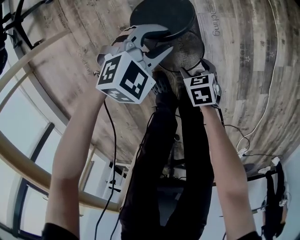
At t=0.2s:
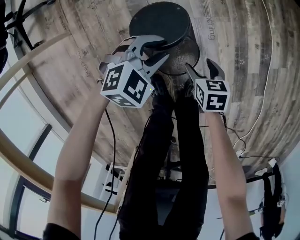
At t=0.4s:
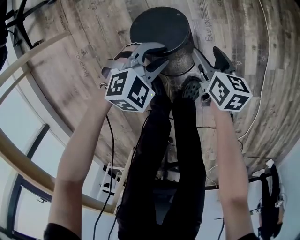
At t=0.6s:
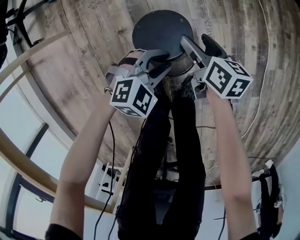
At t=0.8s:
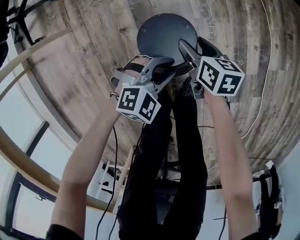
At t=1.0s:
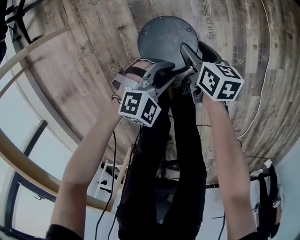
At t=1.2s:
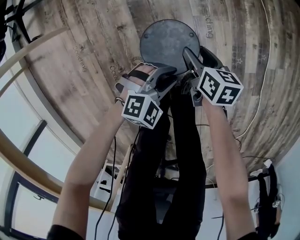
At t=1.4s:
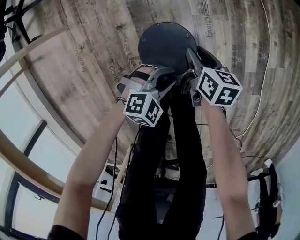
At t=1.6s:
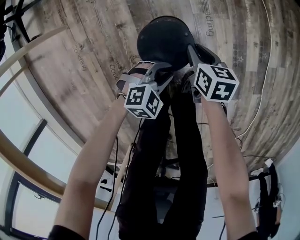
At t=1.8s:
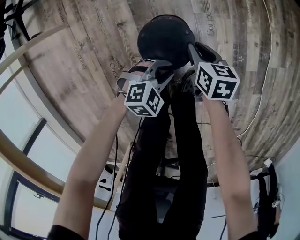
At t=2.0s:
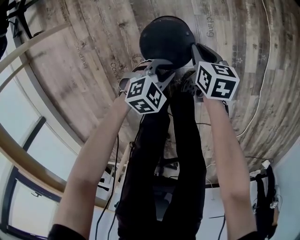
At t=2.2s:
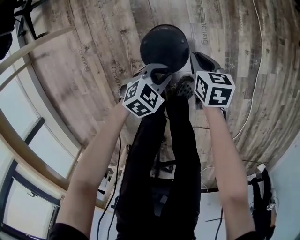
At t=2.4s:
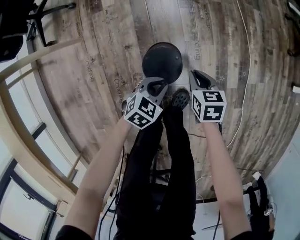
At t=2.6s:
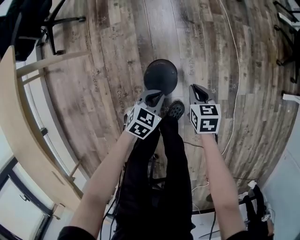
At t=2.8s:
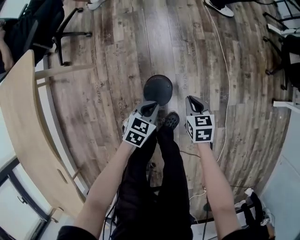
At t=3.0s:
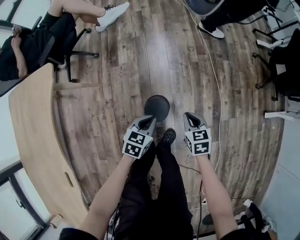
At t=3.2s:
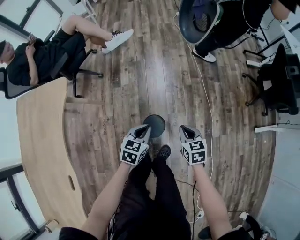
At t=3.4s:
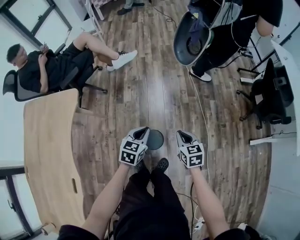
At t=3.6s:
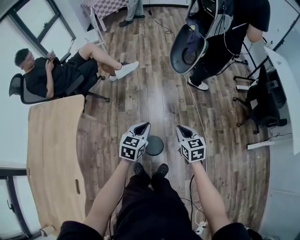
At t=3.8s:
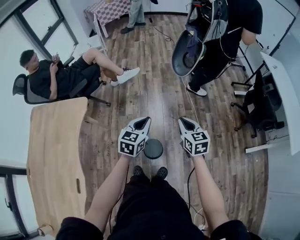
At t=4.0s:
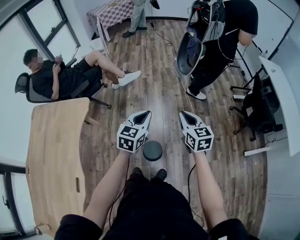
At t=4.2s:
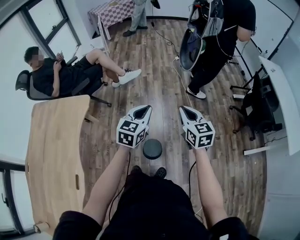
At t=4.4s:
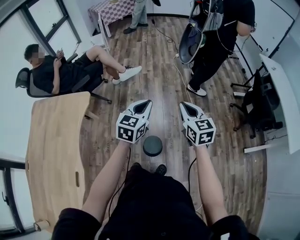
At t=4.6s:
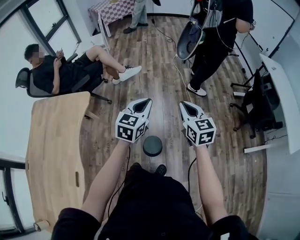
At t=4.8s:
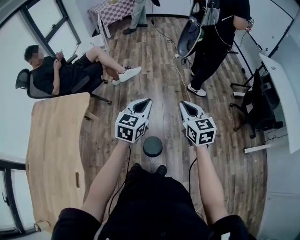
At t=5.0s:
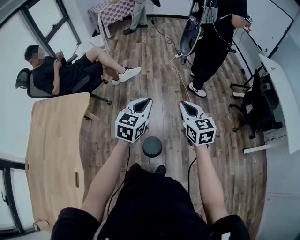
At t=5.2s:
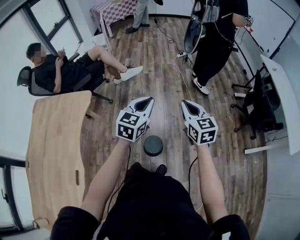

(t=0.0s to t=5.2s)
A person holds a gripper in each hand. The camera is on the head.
t=0.0s - t=1.8s: The right gripper changes its angle by about 30 degrees, and closes up; the left gripper moves roughly 15 cm.
t=1.8s - t=3.4s: Both grippers travel together upward, about 50 cm. The left gripper turns by approximately 60 degrees; the right gripper swivels about 30 degrees.
t=3.4s - t=5.2s: Both grippers travel together upward, about 25 cm. The right gripper swivels approximately 20 degrees. The left gripper rotates roughly 20 degrees.

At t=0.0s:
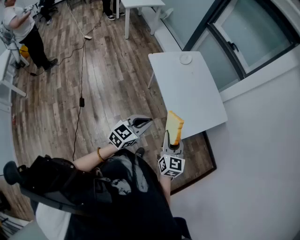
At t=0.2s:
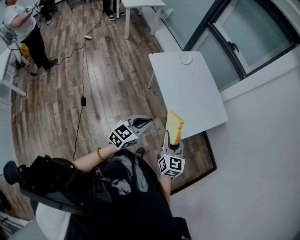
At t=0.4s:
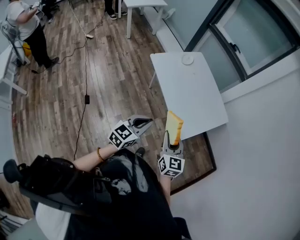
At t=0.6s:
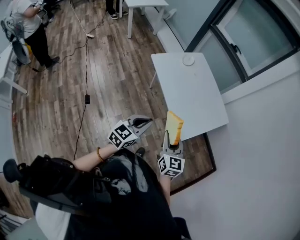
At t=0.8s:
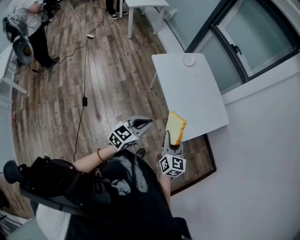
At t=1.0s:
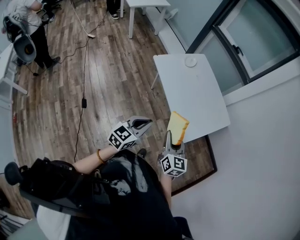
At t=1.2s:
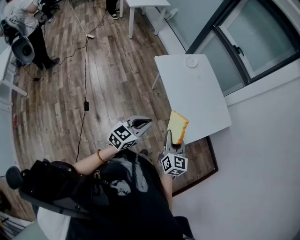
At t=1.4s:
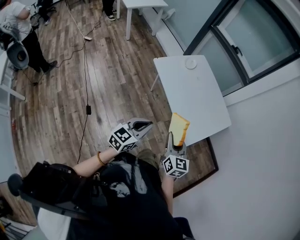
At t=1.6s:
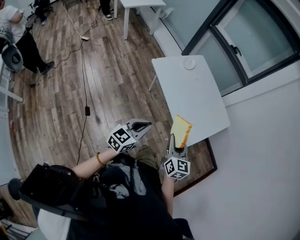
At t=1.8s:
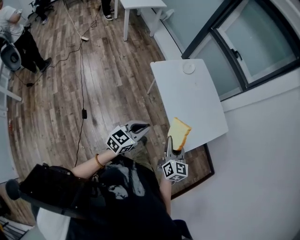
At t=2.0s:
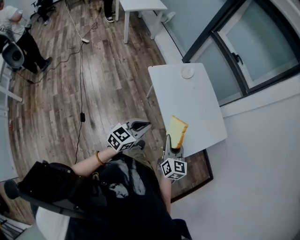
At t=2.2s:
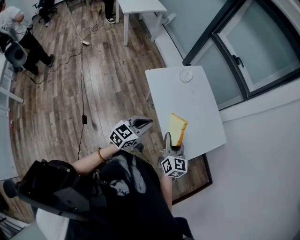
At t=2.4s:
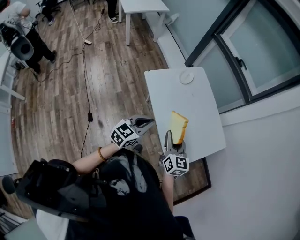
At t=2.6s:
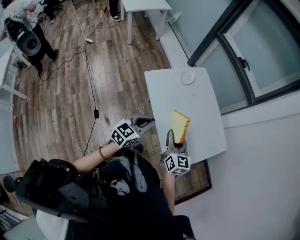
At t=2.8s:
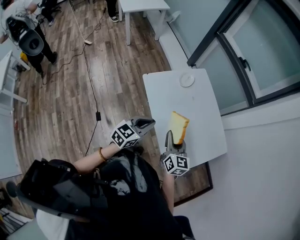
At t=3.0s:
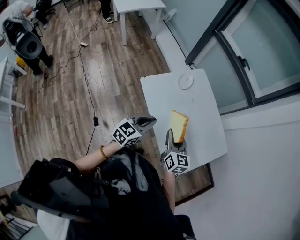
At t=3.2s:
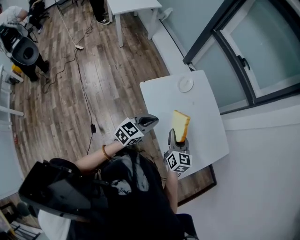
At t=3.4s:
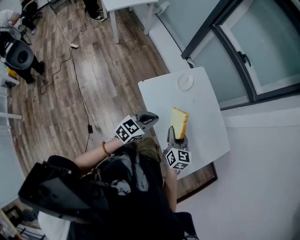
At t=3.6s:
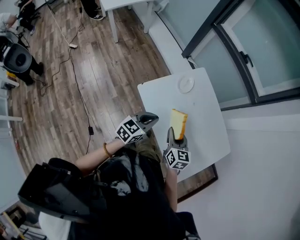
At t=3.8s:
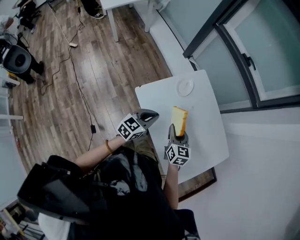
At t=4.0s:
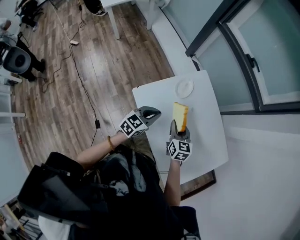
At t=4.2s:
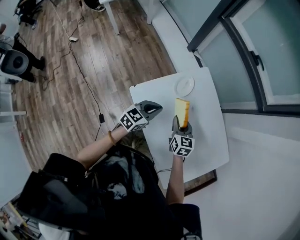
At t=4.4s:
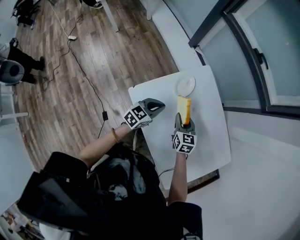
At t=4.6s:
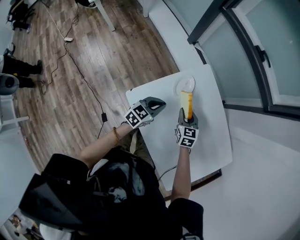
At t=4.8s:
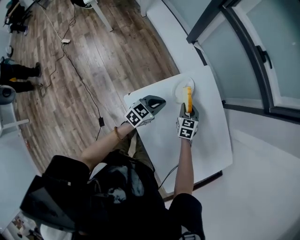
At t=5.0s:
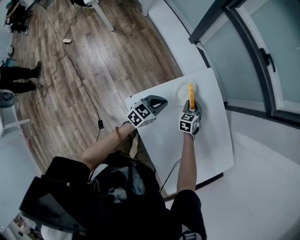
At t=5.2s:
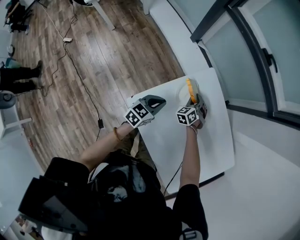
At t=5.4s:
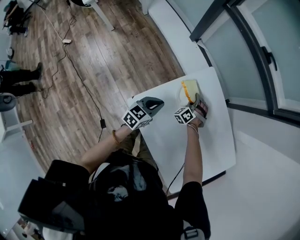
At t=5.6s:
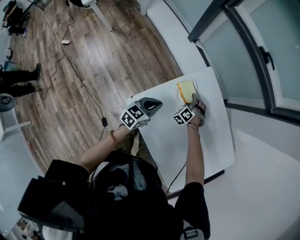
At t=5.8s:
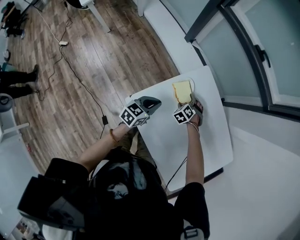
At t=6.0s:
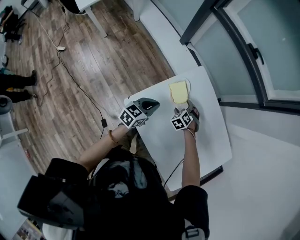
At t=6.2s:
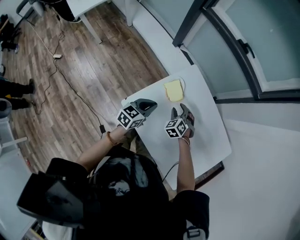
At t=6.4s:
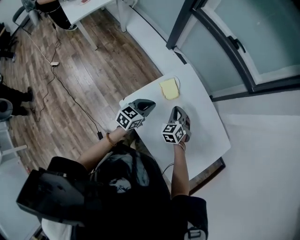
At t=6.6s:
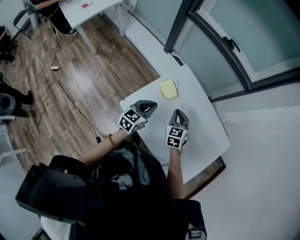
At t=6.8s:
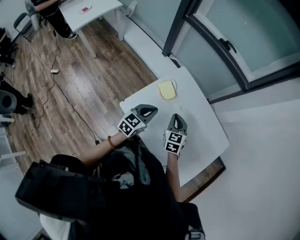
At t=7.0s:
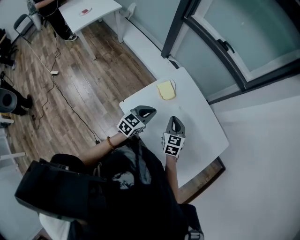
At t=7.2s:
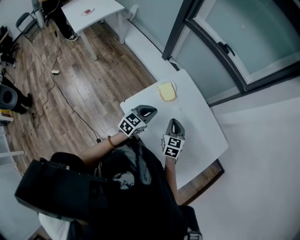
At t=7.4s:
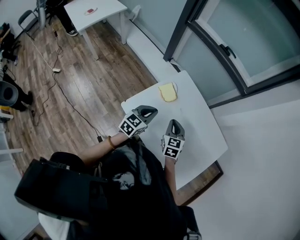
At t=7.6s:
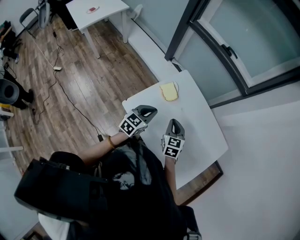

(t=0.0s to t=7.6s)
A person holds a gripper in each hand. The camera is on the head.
t=0.0s - t=1.6s: The left gripper shifts some 10 cm to the left. The right gripper travels to the left by approximately 5 cm.
t=1.6s - t=3.0s: The grippers both shift forward by approximately 30 cm.
t=3.0s - t=4.6s: Both grippers travel together forward and downward, approximately 35 cm. The right gripper changes its angle by some 20 degrees.
t=4.6s - t=6.0s: The right gripper goes about 10 cm downward, goes forward and returns, roughly 15 cm each way, rotates roughly 50 degrees, and opens.
t=6.0s - t=7.6s: The right gripper goes some 25 cm upward and backward, tilts its fingers approximately 30 degrees upward, and closes its fingers. Meanwhile the left gripper goes roughly 15 cm upward, backward and to the right.

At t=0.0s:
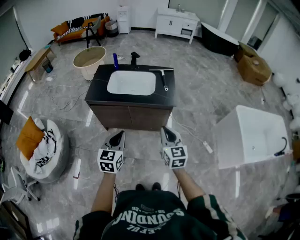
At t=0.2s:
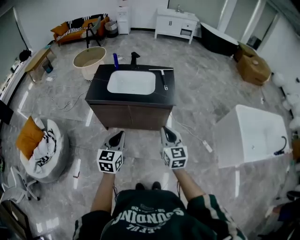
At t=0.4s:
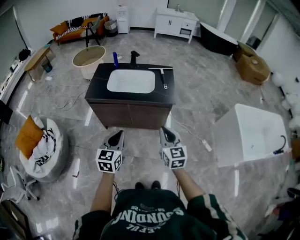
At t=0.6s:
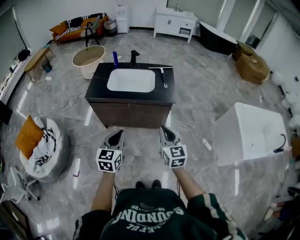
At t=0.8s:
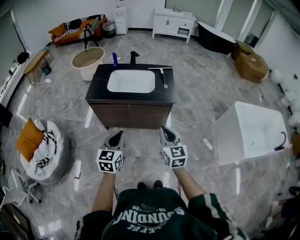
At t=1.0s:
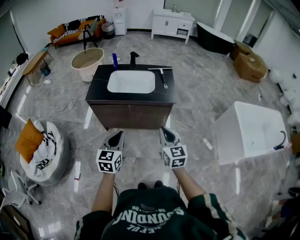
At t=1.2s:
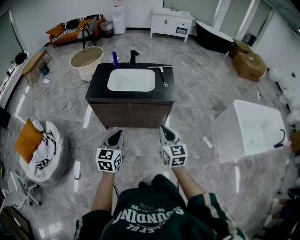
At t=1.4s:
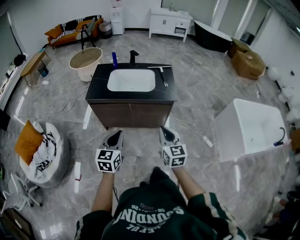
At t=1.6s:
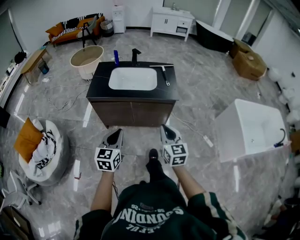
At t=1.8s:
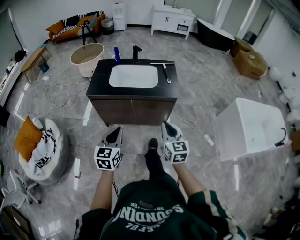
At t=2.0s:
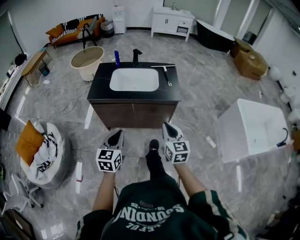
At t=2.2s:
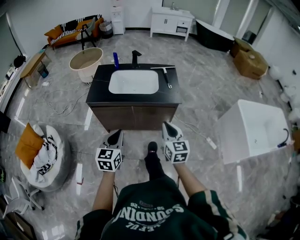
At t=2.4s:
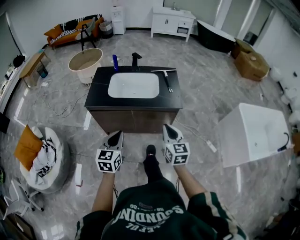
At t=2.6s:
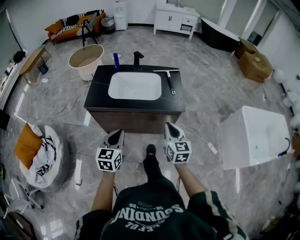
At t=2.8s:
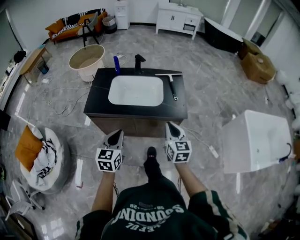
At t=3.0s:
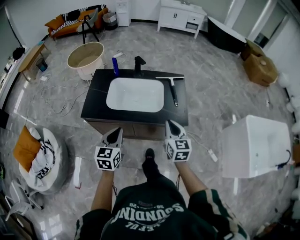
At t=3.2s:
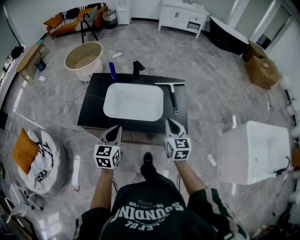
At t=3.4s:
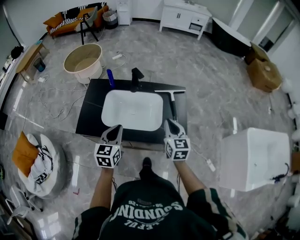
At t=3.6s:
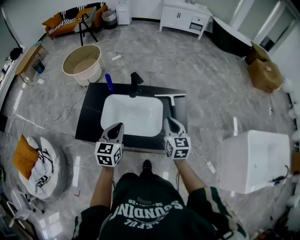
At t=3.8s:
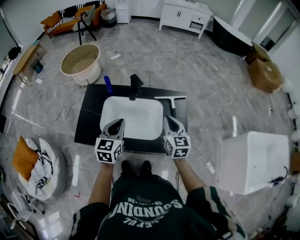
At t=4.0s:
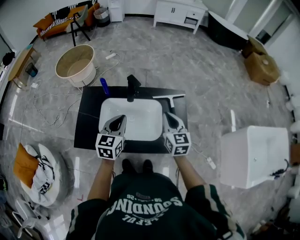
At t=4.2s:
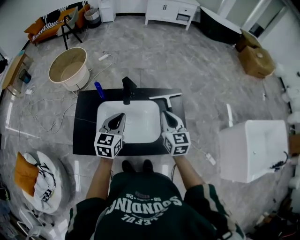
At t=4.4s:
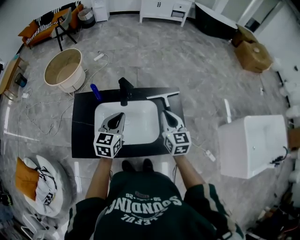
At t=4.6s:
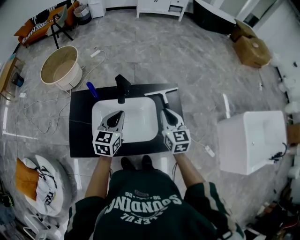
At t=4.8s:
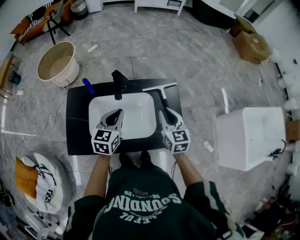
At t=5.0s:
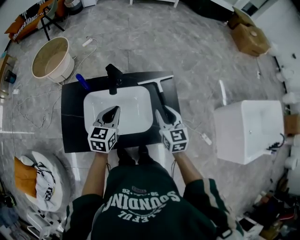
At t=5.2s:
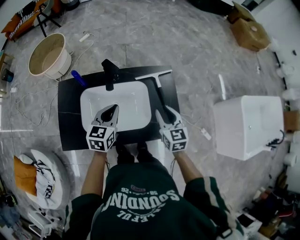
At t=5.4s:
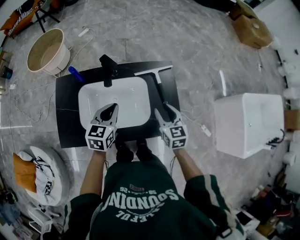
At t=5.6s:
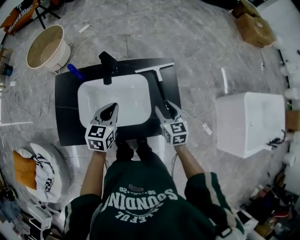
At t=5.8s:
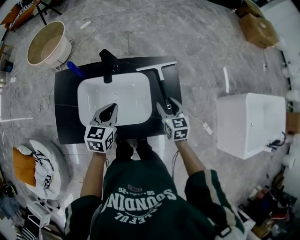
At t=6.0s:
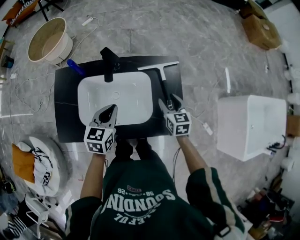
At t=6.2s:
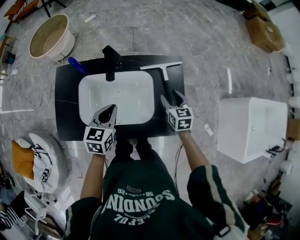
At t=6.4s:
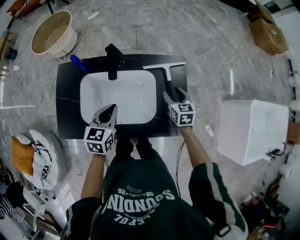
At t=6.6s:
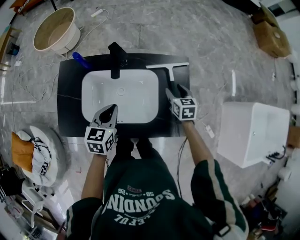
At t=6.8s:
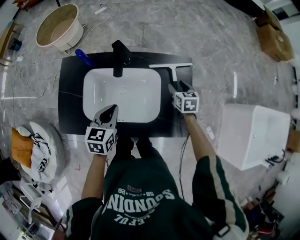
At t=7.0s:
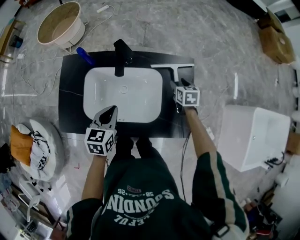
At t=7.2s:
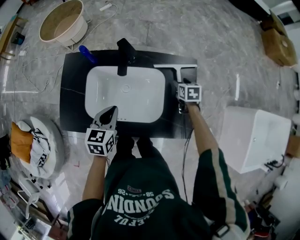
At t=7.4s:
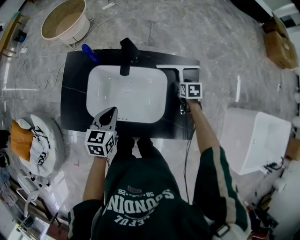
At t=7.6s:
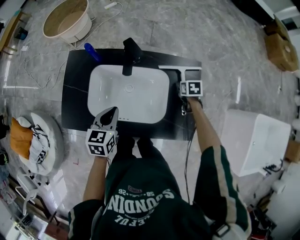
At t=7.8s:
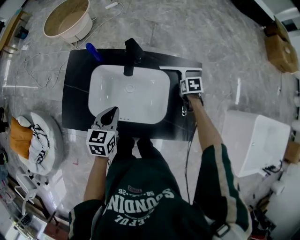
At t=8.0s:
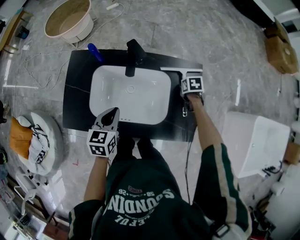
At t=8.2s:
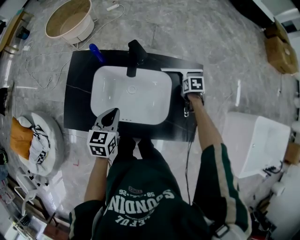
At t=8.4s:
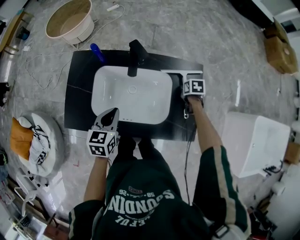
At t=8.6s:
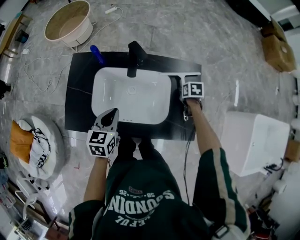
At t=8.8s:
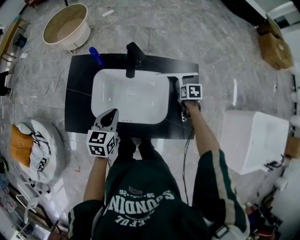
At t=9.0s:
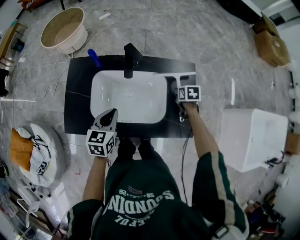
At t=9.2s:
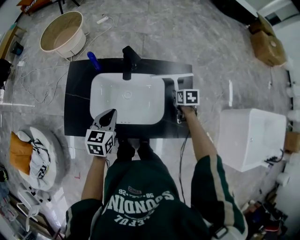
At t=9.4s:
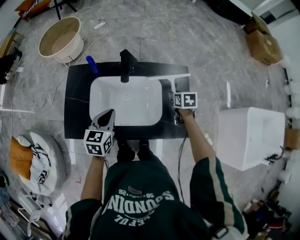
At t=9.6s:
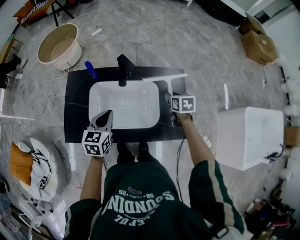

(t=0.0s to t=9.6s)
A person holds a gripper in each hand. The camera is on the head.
t=0.0s - t=1.6s: The left gripper moves to the left, some 5 cm, while the right gripper ends up about 5 cm from where it was.
t=1.6s - t=3.2s: Both grippers travel together forward, about 30 cm.
t=3.2s - t=4.8s: The two grippers go approximately 20 cm forward.
t=4.8s - t=6.4s: The left gripper moves downward, some 5 cm. Meanwhile the right gripper heads downward, forward and to the right, covering approximately 15 cm, changes its angle by roughly 20 degrees, and opens its fingers.
t=6.4s - t=8.0s: The left gripper changes place by approximately 5 cm; the right gripper travels downward by approximately 10 cm, tips its fingers downward by some 40 degrees, and closes.
t=8.0s - t=9.6s: The right gripper goes roughly 10 cm upward, and swivels approximately 20 degrees.

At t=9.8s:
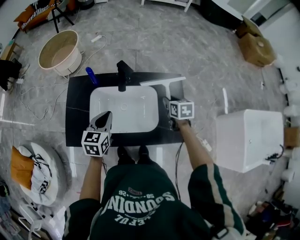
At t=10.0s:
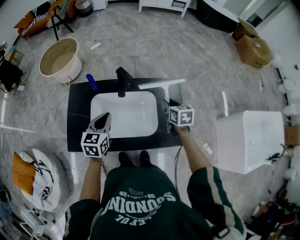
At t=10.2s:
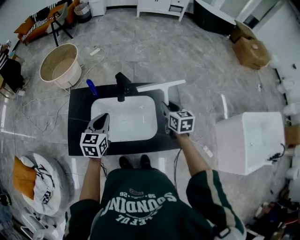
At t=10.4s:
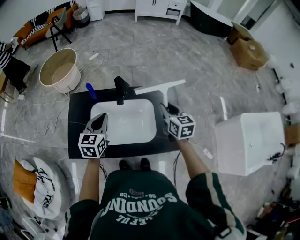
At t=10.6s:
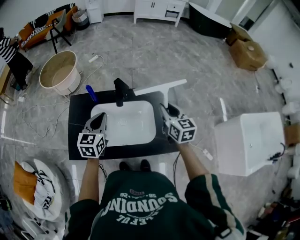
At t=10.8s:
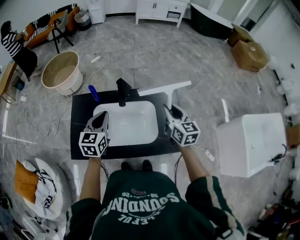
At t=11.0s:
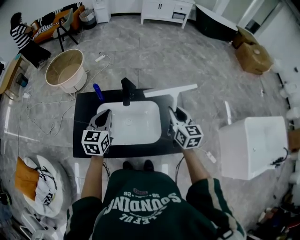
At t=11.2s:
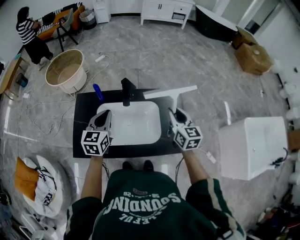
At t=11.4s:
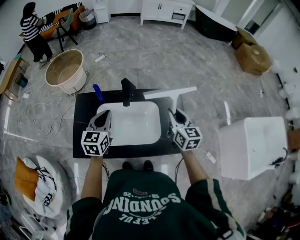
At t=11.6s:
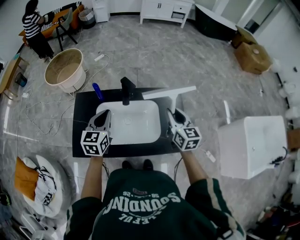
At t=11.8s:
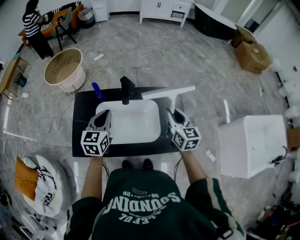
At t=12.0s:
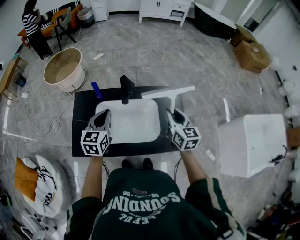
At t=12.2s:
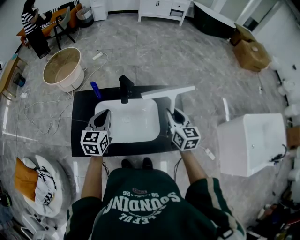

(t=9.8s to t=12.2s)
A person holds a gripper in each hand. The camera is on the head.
t=9.8s - t=11.0s: The left gripper goes approximately 10 cm upward. Meanwhile the right gripper is displaced upward by some 15 cm, and points its fingers about 30 degrees further upward.
t=11.0s - t=12.2s: The grippers move only a little.
